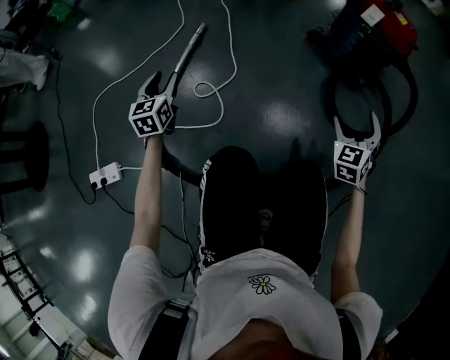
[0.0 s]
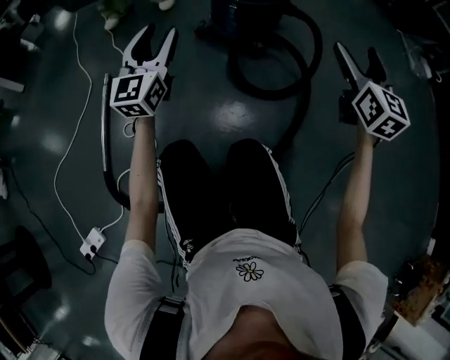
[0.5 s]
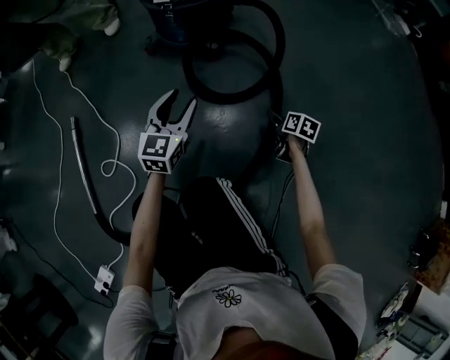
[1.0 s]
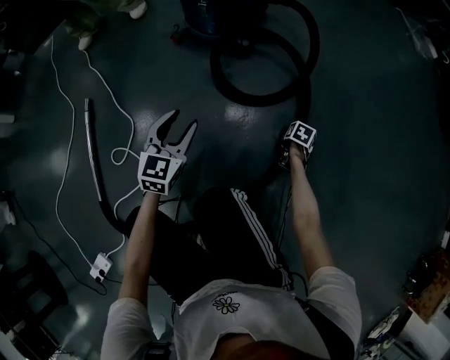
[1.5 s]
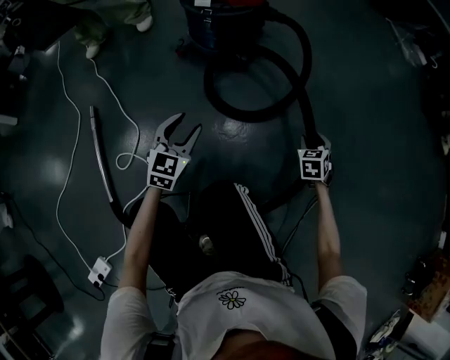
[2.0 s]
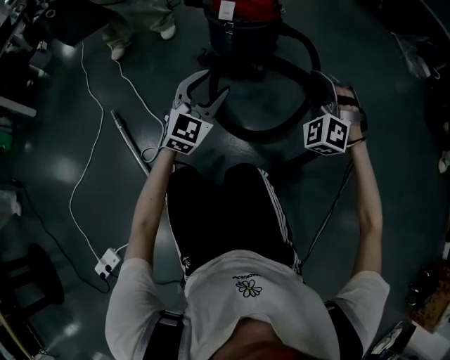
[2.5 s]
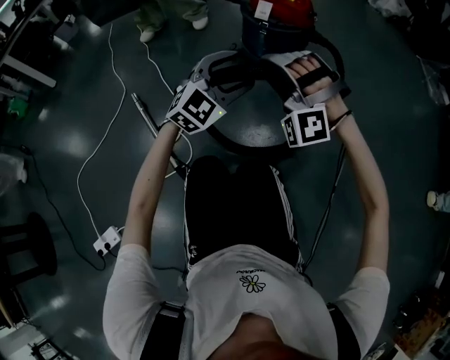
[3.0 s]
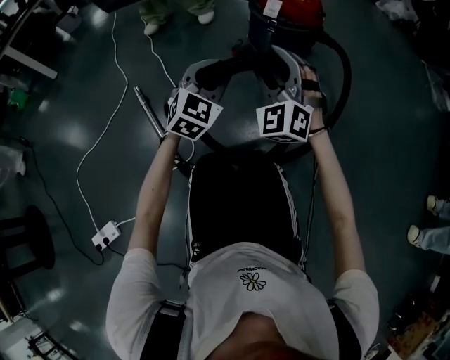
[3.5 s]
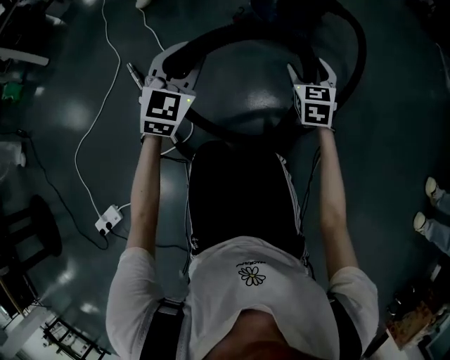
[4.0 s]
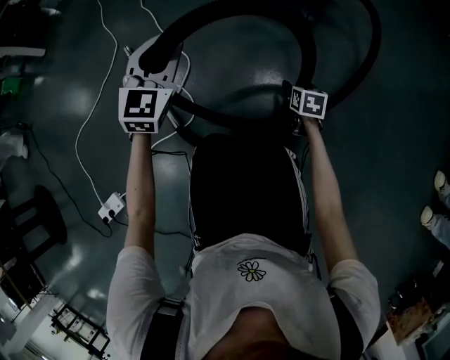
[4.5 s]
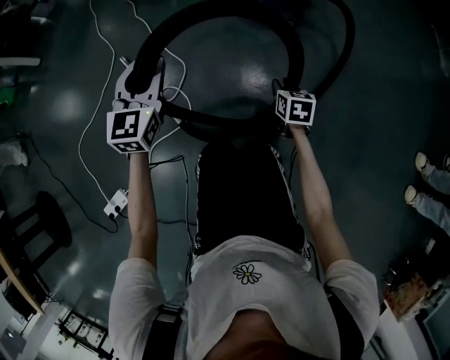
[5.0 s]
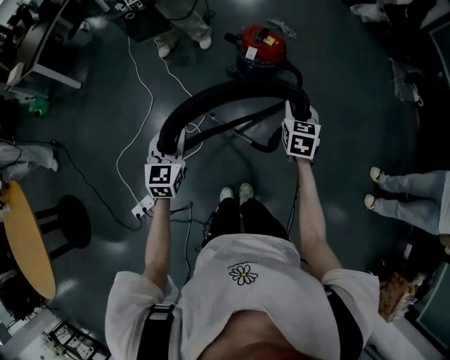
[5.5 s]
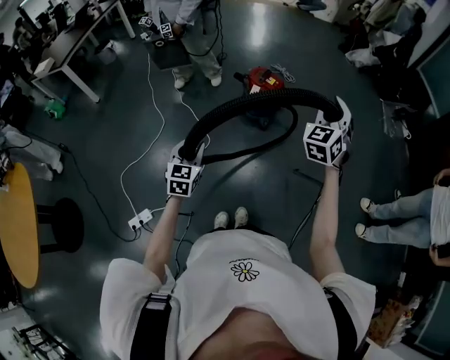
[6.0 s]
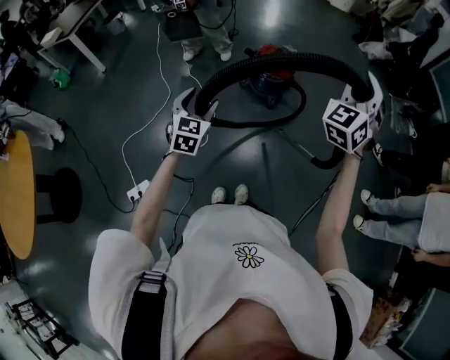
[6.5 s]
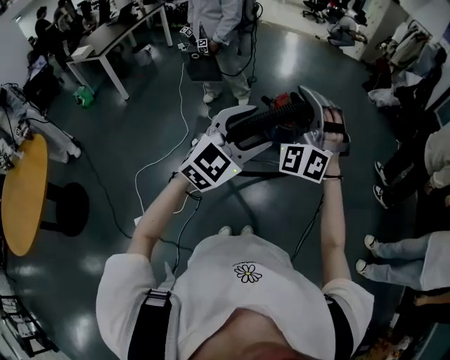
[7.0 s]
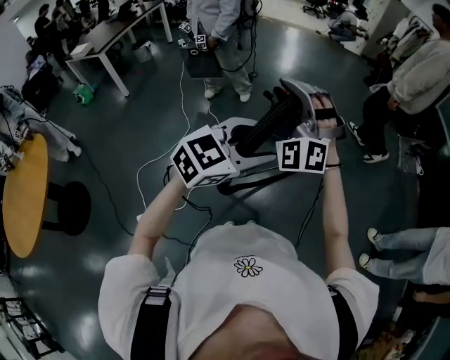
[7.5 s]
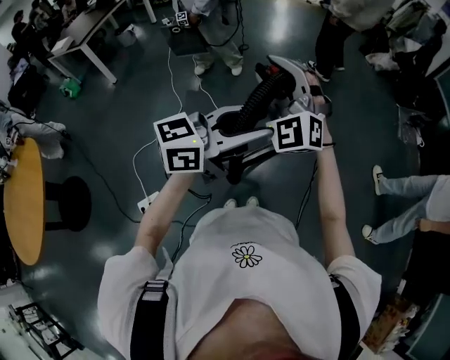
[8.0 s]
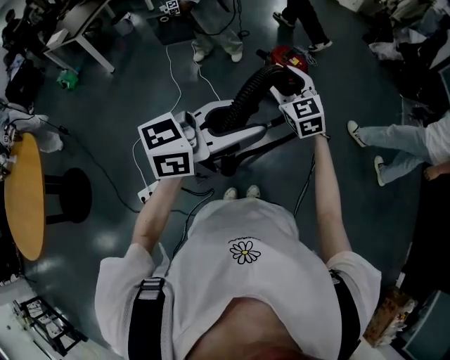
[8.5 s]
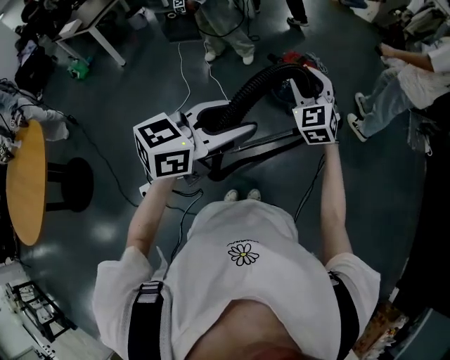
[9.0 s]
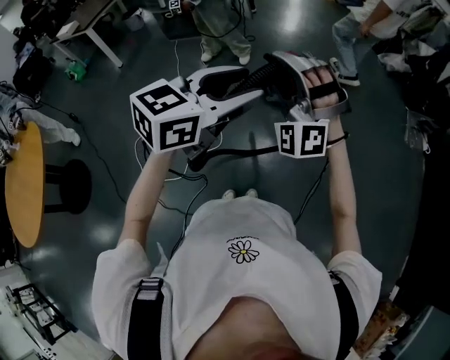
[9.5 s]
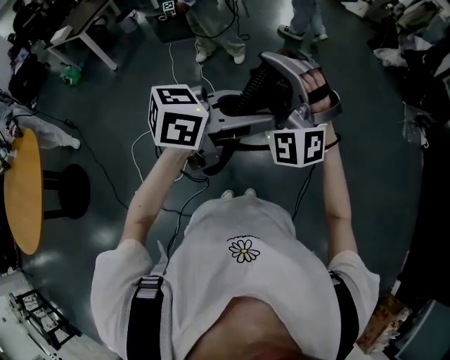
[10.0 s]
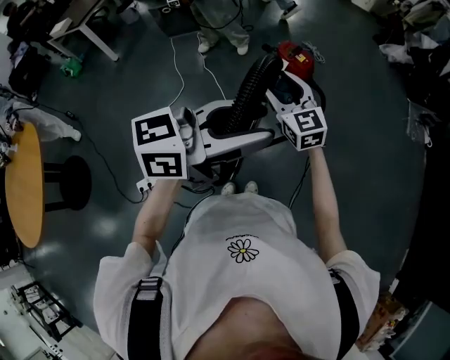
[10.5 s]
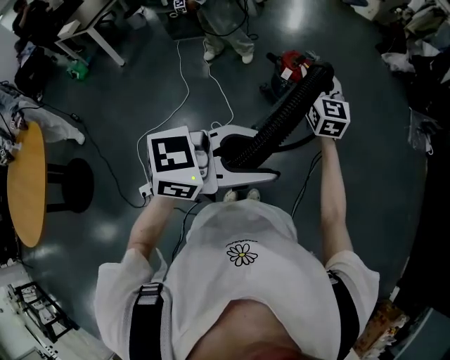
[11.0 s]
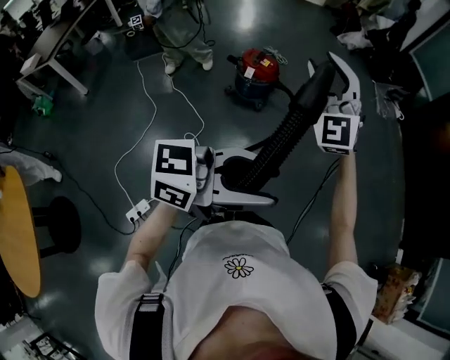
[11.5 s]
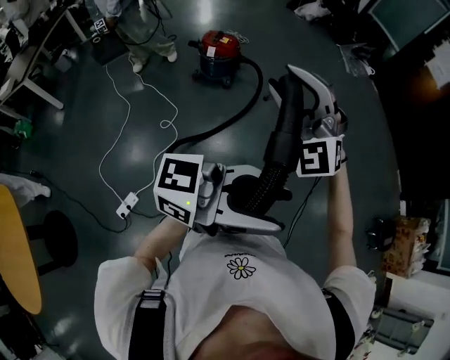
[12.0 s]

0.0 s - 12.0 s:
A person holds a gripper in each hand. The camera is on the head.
0.0 s - 2.0 s: The right gripper moves up and down over roughly 60 cm, changing direction 2 times, rotates about 40 degrees, and closes its fingers. Meanwhile the left gripper reaches roughly 20 cm upward, then returns, and swivels approximately 60 degrees.
2.0 s - 4.0 s: The right gripper turns by some 30 degrees; the left gripper moves upward, about 15 cm.
4.0 s - 6.0 s: The right gripper moves upward, approximately 80 cm, turns by approximately 40 degrees, and closes up; the left gripper moves upward and backward, roughly 50 cm, and changes its angle by roughly 30 degrees.
6.0 s - 8.0 s: The left gripper shifts approximately 30 cm upward and to the right, and changes its angle by some 60 degrees. The right gripper travels to the left and backward by roughly 30 cm, and turns by roughly 50 degrees.
8.0 s - 10.0 s: The right gripper goes downward and returns, about 15 cm each way.
10.0 s - 12.0 s: The left gripper ends up some 40 cm from where it was, and changes its angle by roughly 50 degrees. The right gripper goes up and down, some 20 cm each way, reversing 2 times, and rotates approximately 20 degrees.

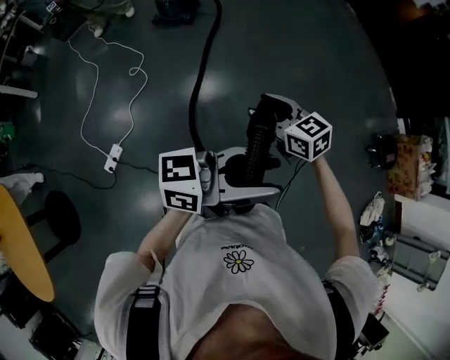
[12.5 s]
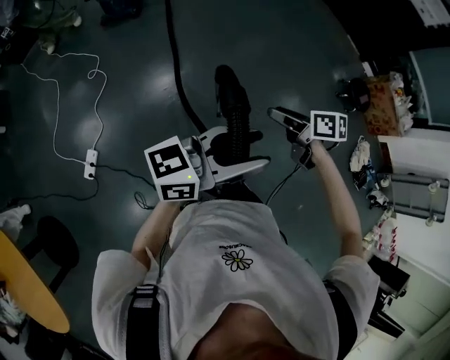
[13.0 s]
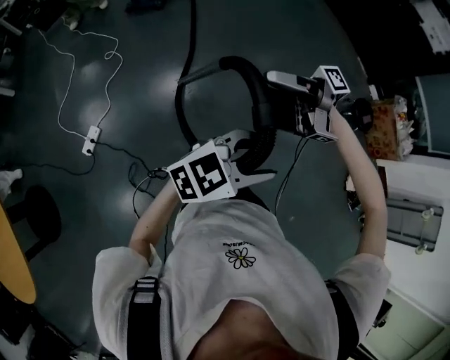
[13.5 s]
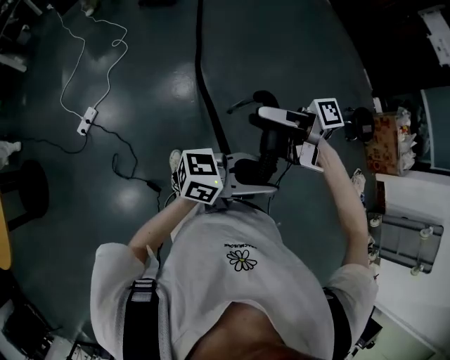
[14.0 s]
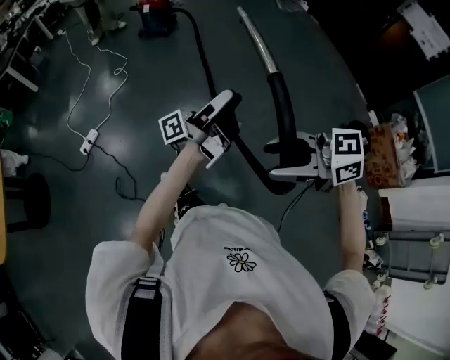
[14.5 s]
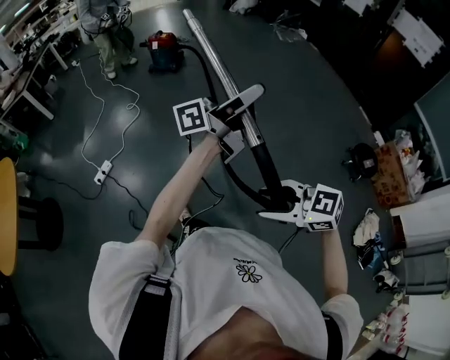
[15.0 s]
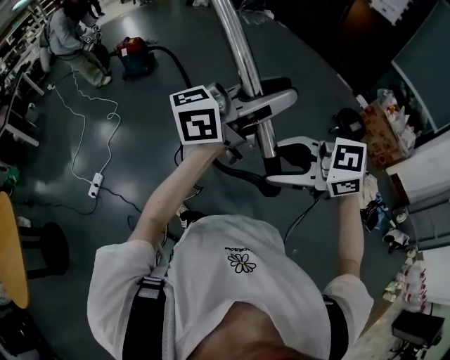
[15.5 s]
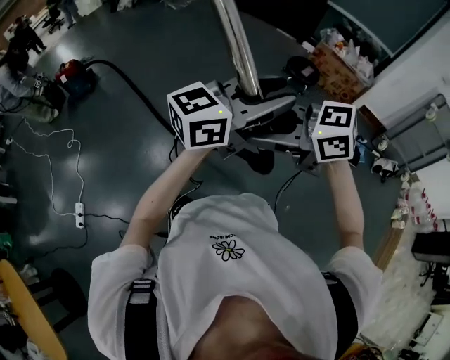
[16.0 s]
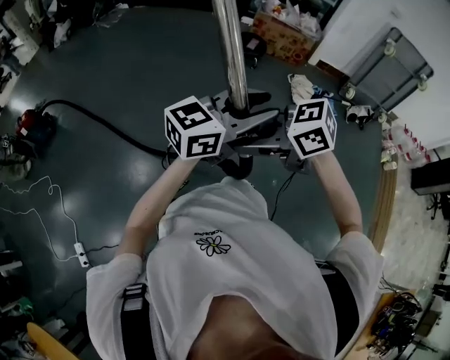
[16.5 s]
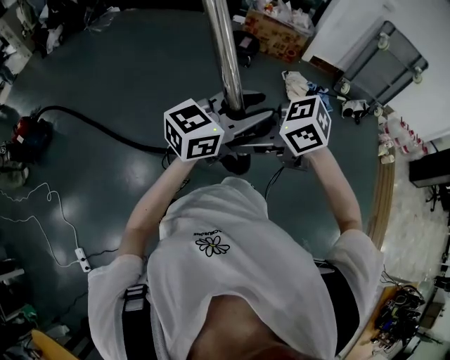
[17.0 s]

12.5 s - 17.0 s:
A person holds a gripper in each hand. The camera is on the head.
12.5 s - 14.5 s: The left gripper changes place by some 30 cm, and turns by approximately 40 degrees. The right gripper moves up and down over roughly 15 cm, changing direction 2 times, and swivels about 40 degrees.
14.5 s - 17.0 s: The left gripper reaches roughly 20 cm upward, then returns, and tips its fingers downward by about 30 degrees. Meanwhile the right gripper moves up and down over roughly 10 cm, changing direction 2 times, and rotates roughly 60 degrees.

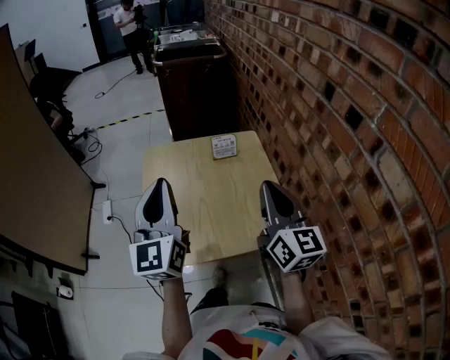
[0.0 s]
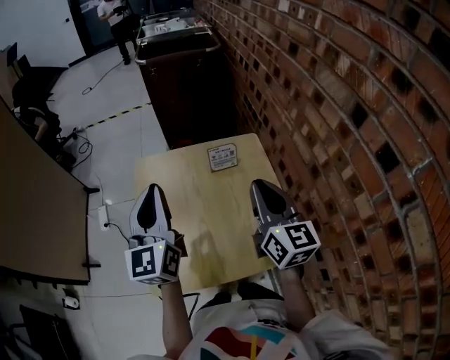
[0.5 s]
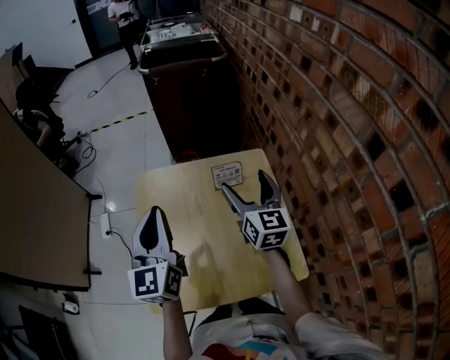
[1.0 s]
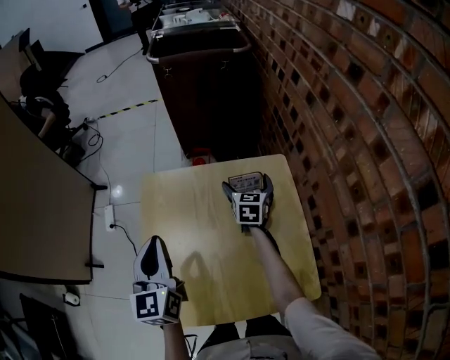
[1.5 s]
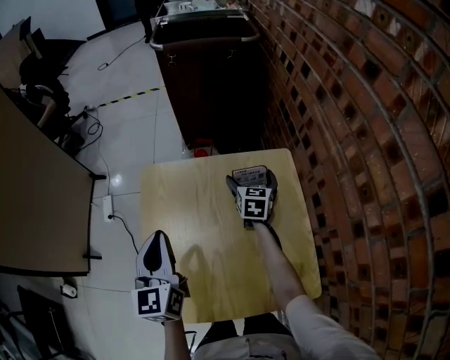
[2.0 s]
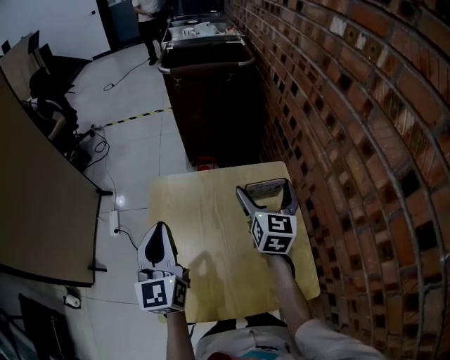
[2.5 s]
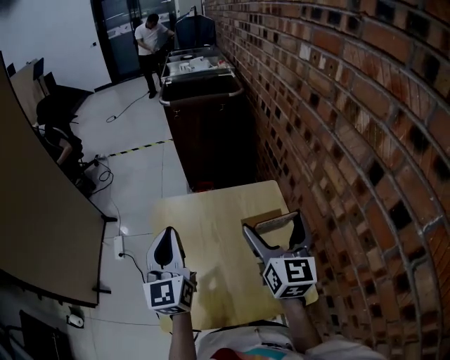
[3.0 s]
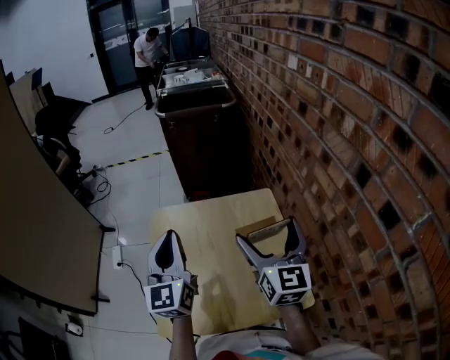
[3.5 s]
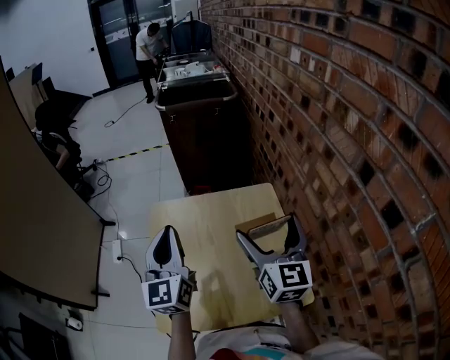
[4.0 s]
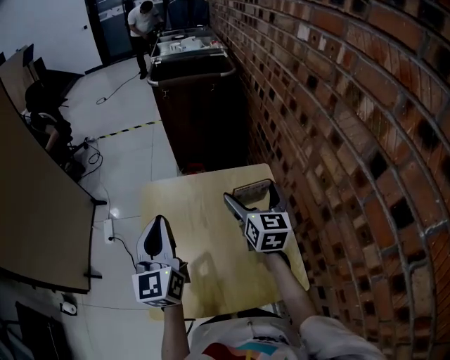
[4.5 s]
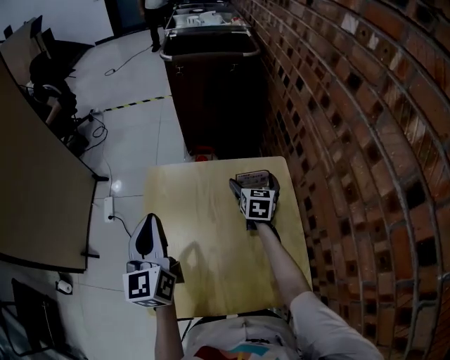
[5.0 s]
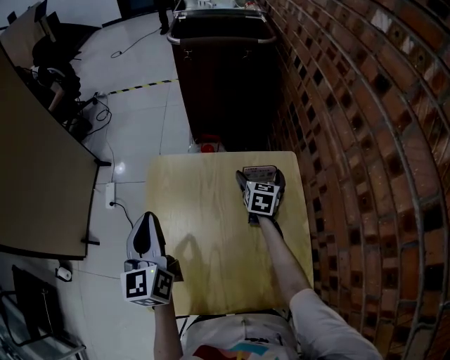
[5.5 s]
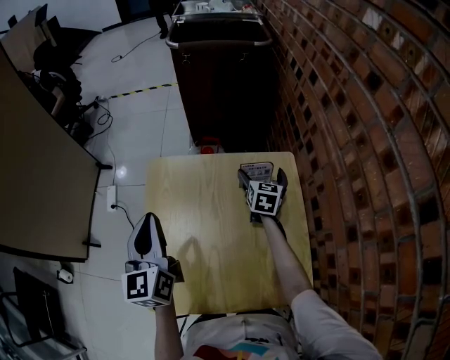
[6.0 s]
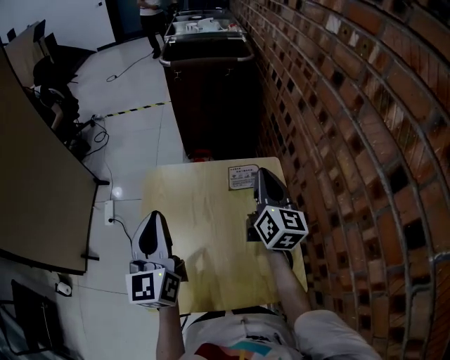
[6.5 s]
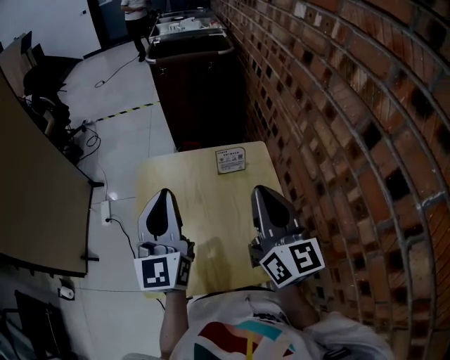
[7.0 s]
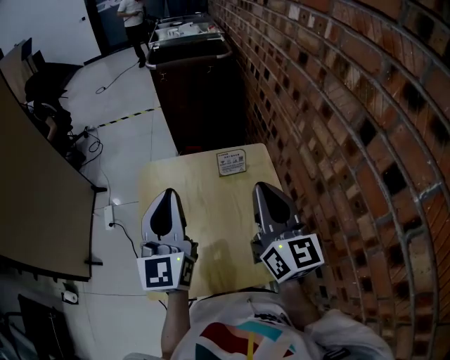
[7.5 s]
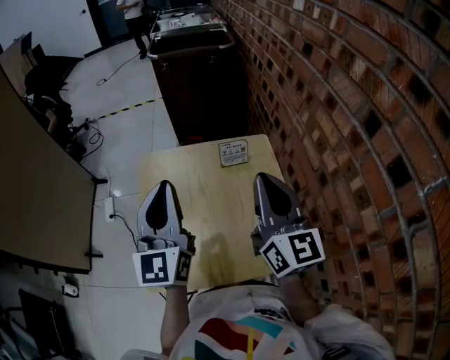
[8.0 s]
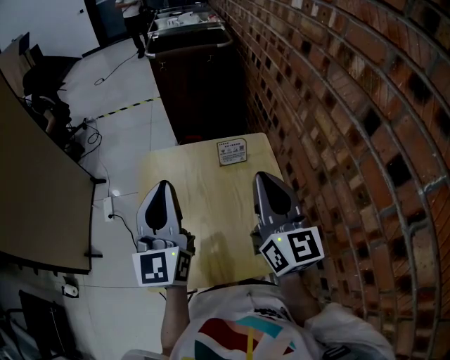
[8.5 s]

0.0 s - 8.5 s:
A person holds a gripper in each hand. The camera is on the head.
0.0 s - 2.0 s: The left gripper goes approximately 25 cm forward and downward, and turns by some 20 degrees; the right gripper moves forward and downward, approximately 50 cm, tilts its fingers approximately 30 degrees downward, and opens up.
2.0 s - 4.0 s: The left gripper travels upward and to the right by approximately 15 cm. Meanwhile the right gripper goes roughly 40 cm upward and backward, and points its fingers approximately 30 degrees further upward.
4.0 s - 6.5 s: The right gripper shifts approximately 10 cm forward, reaches approximately 30 cm downward, then returns, and closes its fingers. Meanwhile the left gripper goes downward and returns, roughly 10 cm each way.
6.5 s - 8.5 s: The left gripper goes about 10 cm upward and to the right. Meanwhile the right gripper shifts about 20 cm backward and upward.

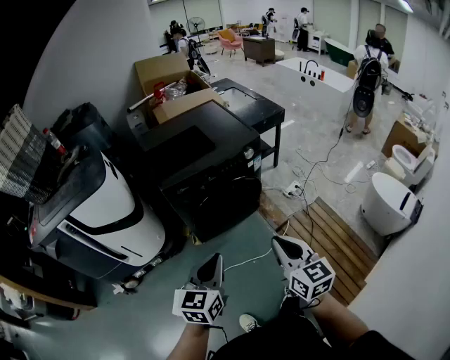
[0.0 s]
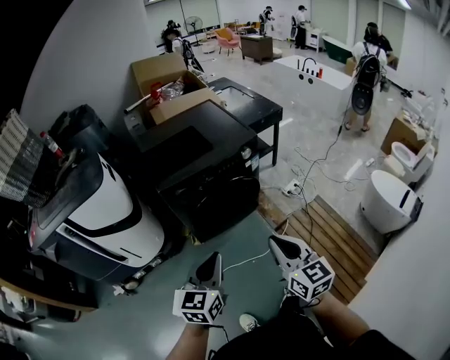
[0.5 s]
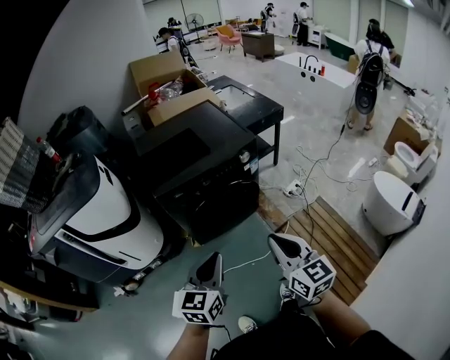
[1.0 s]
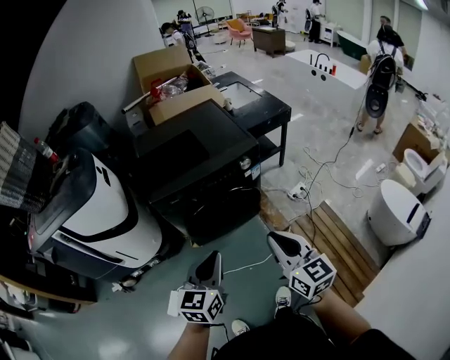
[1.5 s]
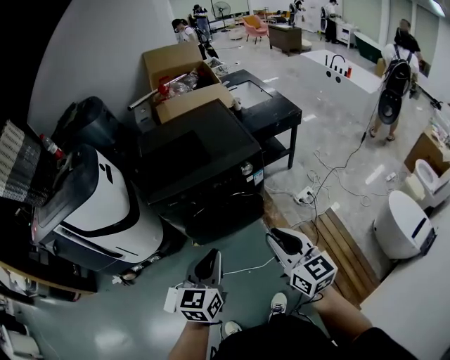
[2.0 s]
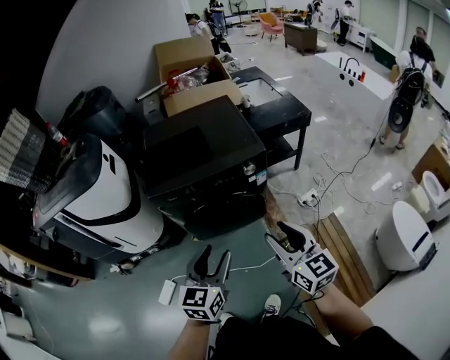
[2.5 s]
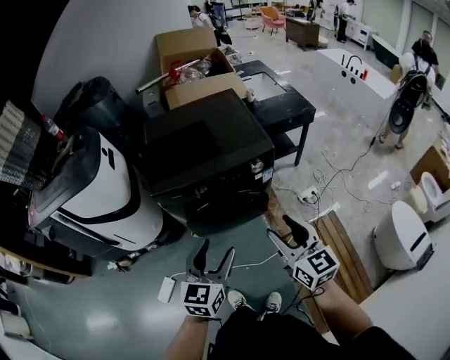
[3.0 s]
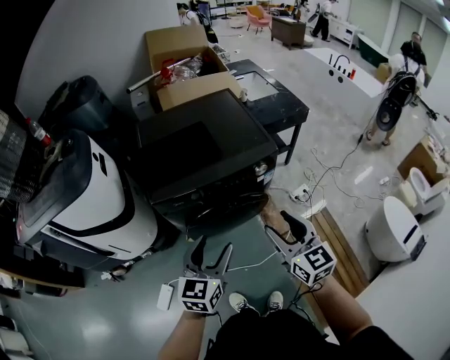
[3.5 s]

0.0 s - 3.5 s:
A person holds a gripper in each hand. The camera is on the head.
0.0 s - 2.0 s: Both grippers move forward and to the right, some 20 cm.
2.0 s - 3.5 s: The two grippers go about 10 cm forward and to the left. The right gripper opens. Meanwhile the left gripper opens up.